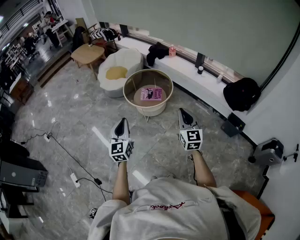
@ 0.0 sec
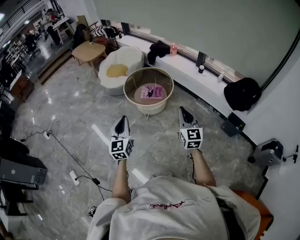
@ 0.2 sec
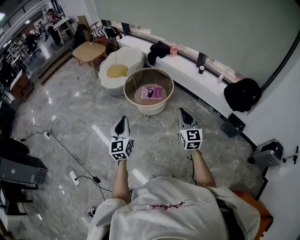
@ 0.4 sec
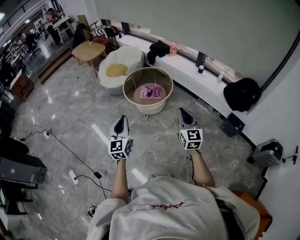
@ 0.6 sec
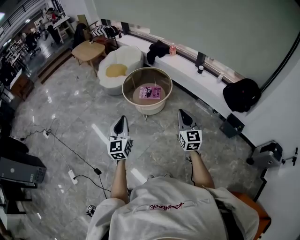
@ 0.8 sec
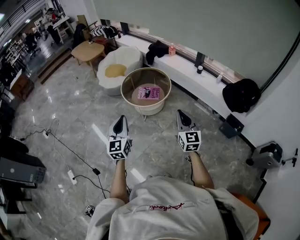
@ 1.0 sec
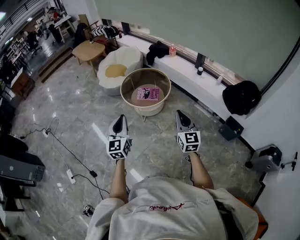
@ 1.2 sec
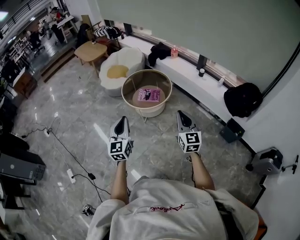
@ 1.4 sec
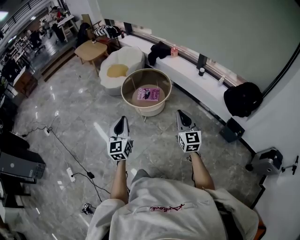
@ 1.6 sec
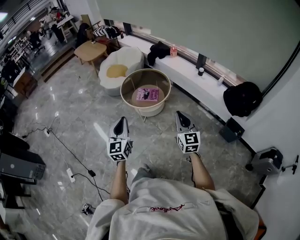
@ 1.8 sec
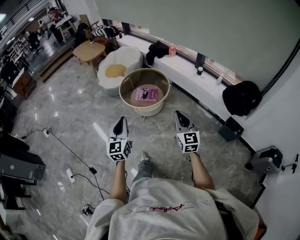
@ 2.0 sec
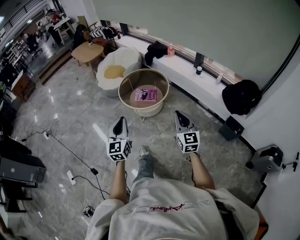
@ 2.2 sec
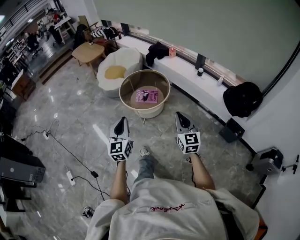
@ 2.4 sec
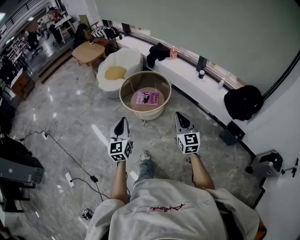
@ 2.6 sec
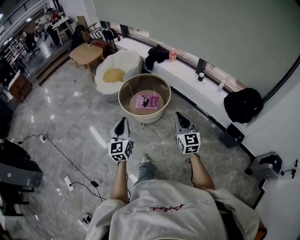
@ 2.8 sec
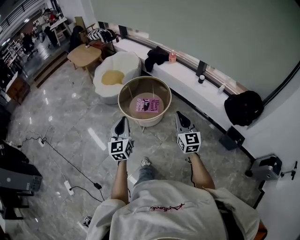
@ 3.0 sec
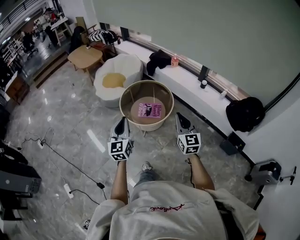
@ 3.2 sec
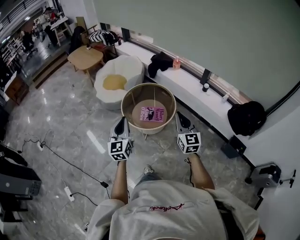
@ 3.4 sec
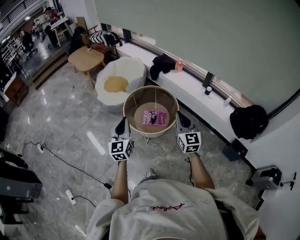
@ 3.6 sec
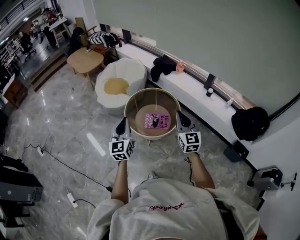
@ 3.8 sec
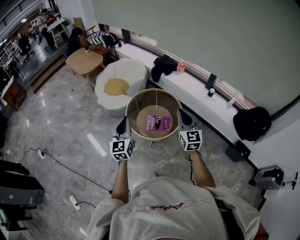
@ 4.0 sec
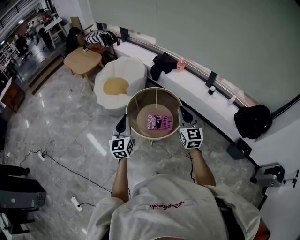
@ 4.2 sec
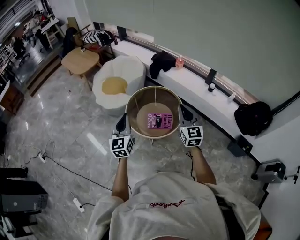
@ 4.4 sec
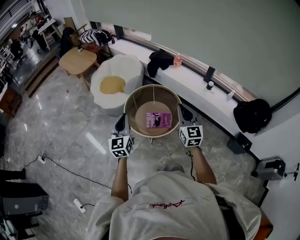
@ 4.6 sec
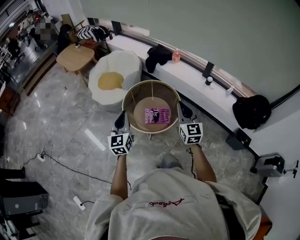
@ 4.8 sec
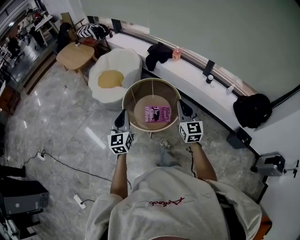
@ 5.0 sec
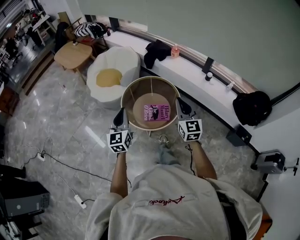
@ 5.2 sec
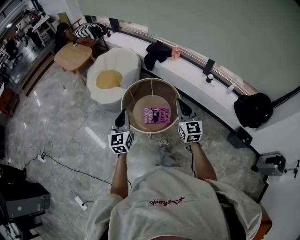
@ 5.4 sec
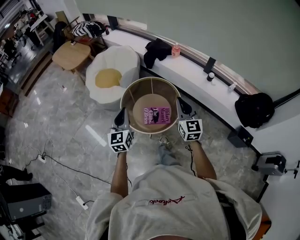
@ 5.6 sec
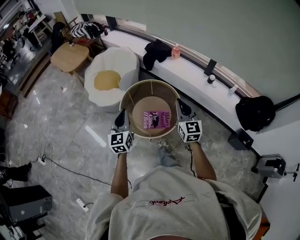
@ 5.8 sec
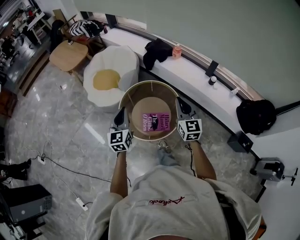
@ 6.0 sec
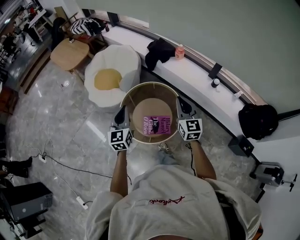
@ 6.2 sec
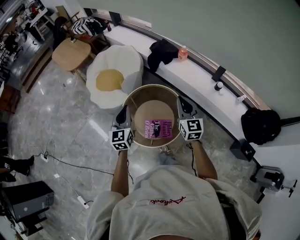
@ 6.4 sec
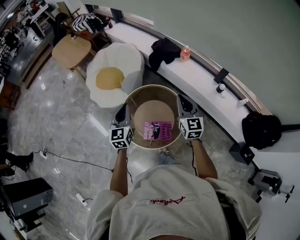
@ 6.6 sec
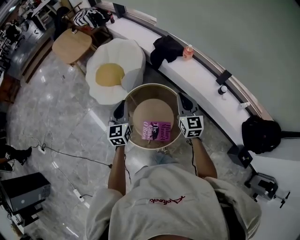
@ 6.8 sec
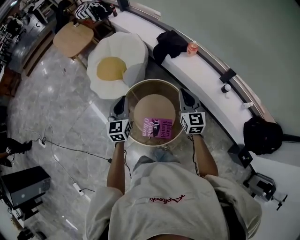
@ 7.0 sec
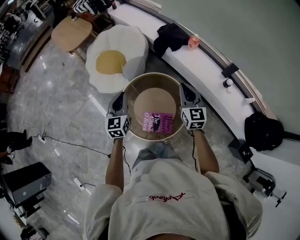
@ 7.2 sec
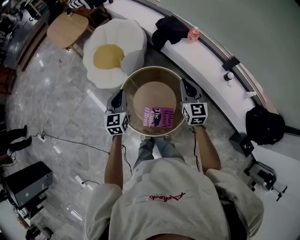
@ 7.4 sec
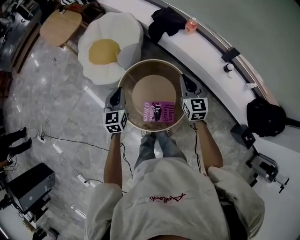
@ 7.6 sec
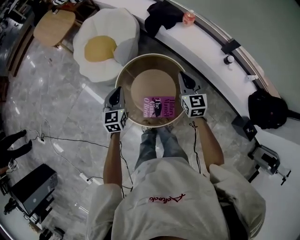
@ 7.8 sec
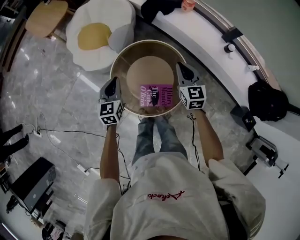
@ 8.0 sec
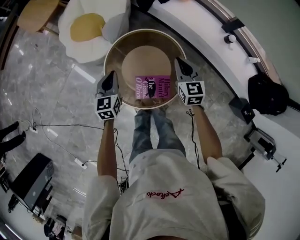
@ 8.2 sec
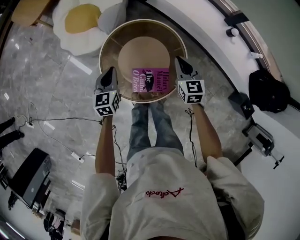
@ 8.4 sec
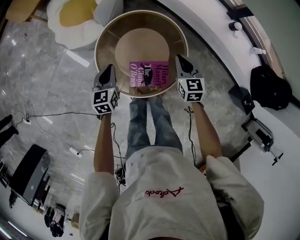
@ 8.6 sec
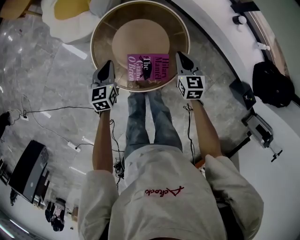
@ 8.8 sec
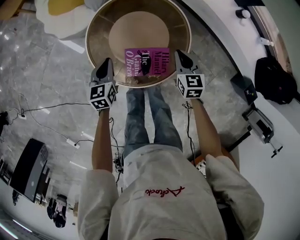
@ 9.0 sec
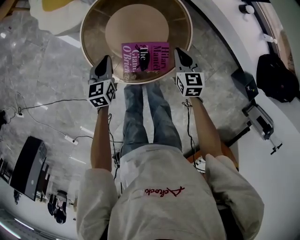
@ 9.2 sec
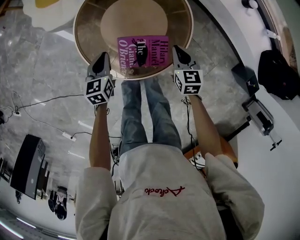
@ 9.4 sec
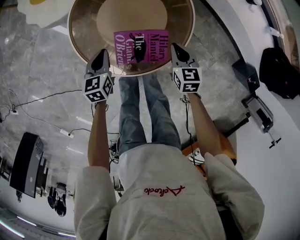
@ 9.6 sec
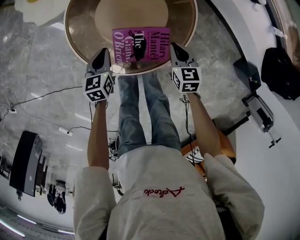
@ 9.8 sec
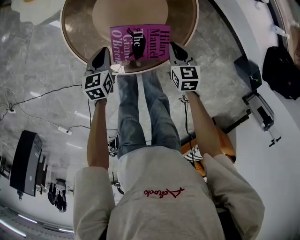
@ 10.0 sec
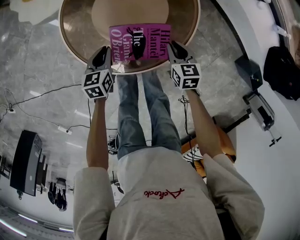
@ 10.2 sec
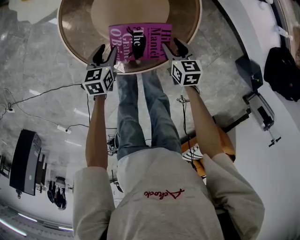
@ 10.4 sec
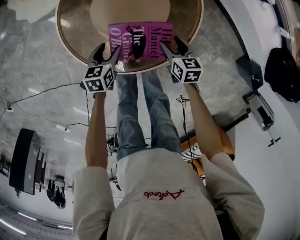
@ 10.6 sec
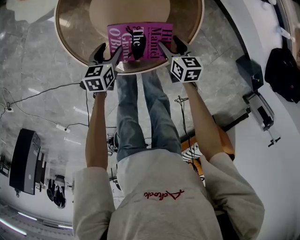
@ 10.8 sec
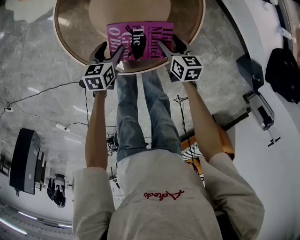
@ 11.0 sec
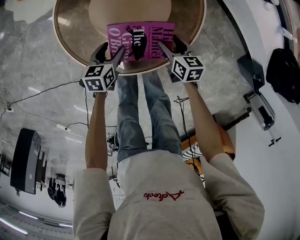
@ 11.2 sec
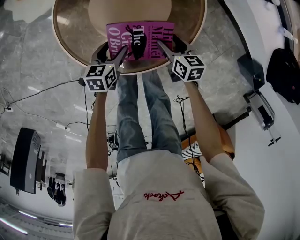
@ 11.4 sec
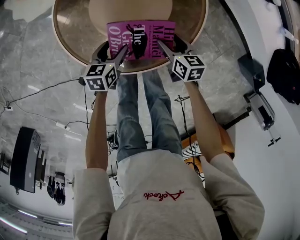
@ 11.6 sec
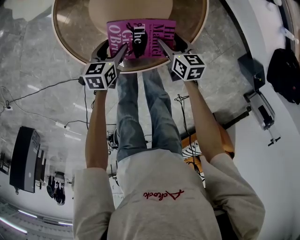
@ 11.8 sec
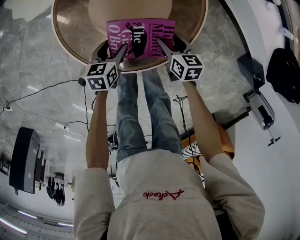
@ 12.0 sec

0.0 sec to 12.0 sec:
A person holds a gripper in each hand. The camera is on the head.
0.0 sec to 1.6 sec: The two grippers go roughly 5 cm to the right.
1.6 sec to 3.0 sec: Both grippers travel together forward, about 15 cm.
3.0 sec to 4.4 sec: Both grippers move forward and to the left, about 25 cm.
4.4 sec to 6.0 sec: The grippers both shift forward by about 15 cm.
6.0 sec to 7.6 sec: The grippers both shift forward and downward by roughly 20 cm.
7.6 sec to 9.0 sec: Both grippers move downward, roughly 25 cm. The right gripper swivels some 20 degrees, while the left gripper turns by about 20 degrees.
9.0 sec to 10.4 sec: The right gripper heads downward and backward, covering about 20 cm, and opens, while the left gripper is displaced downward by roughly 20 cm, and opens.
10.4 sec to 12.0 sec: The left gripper opens.

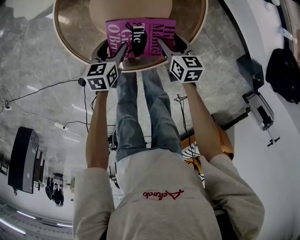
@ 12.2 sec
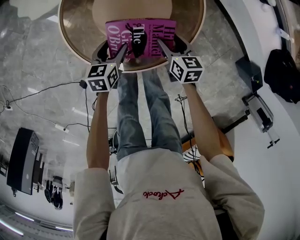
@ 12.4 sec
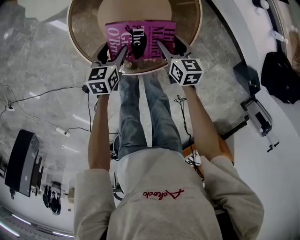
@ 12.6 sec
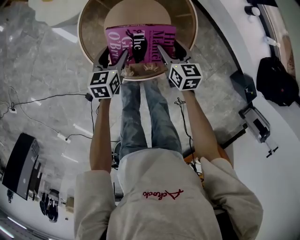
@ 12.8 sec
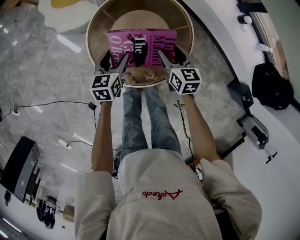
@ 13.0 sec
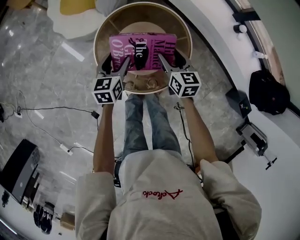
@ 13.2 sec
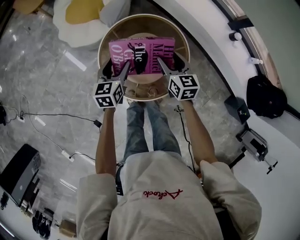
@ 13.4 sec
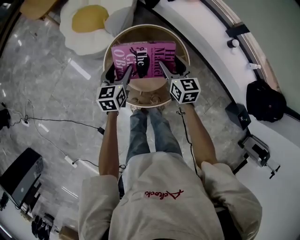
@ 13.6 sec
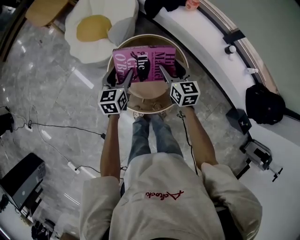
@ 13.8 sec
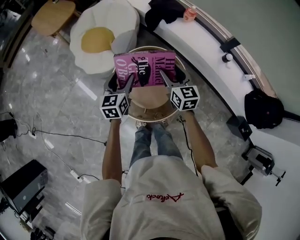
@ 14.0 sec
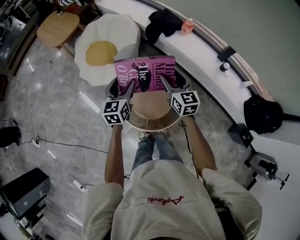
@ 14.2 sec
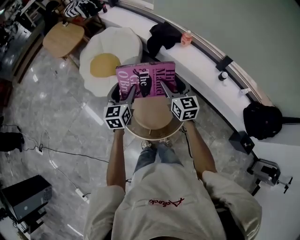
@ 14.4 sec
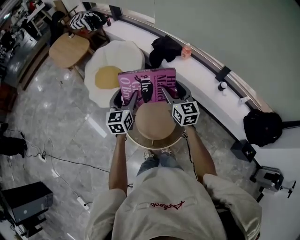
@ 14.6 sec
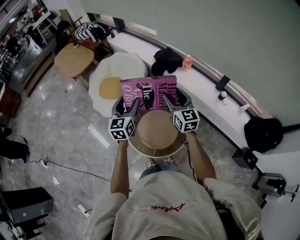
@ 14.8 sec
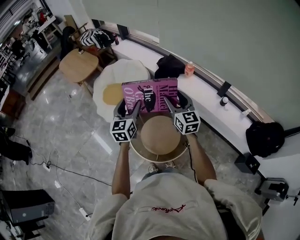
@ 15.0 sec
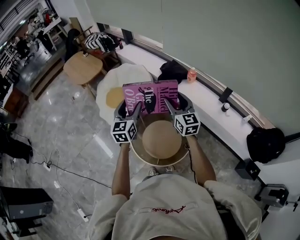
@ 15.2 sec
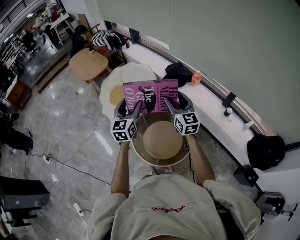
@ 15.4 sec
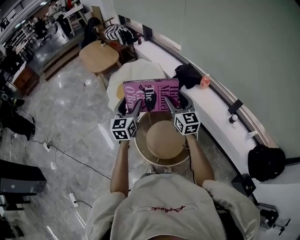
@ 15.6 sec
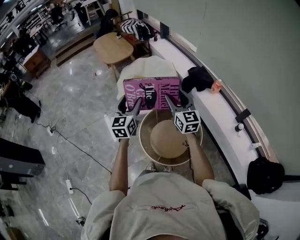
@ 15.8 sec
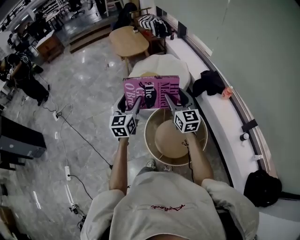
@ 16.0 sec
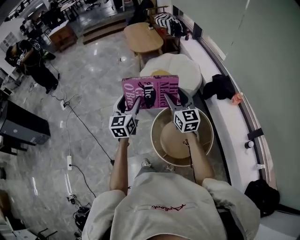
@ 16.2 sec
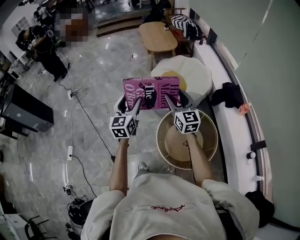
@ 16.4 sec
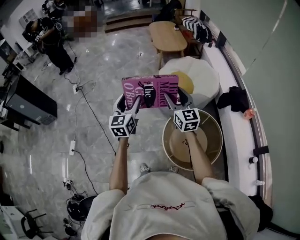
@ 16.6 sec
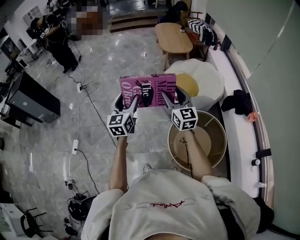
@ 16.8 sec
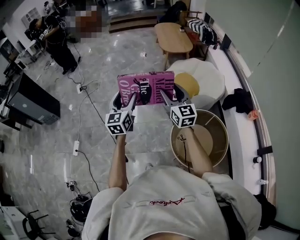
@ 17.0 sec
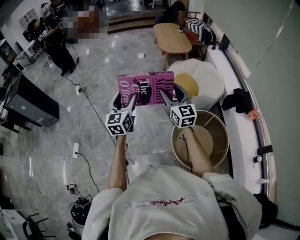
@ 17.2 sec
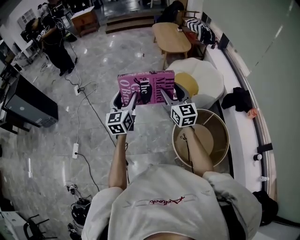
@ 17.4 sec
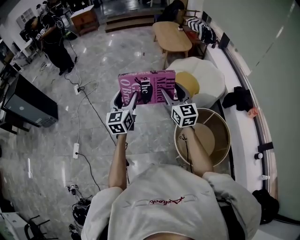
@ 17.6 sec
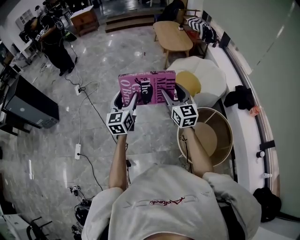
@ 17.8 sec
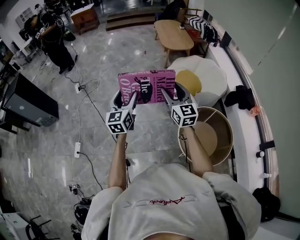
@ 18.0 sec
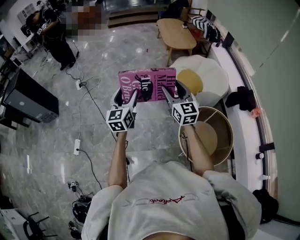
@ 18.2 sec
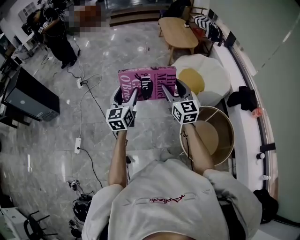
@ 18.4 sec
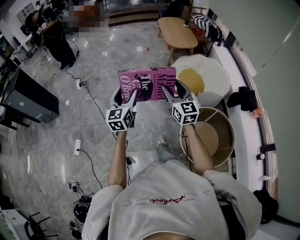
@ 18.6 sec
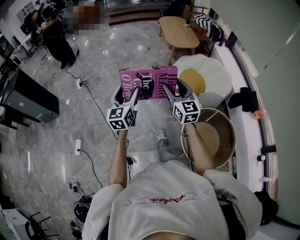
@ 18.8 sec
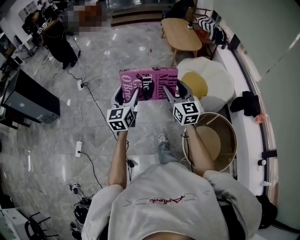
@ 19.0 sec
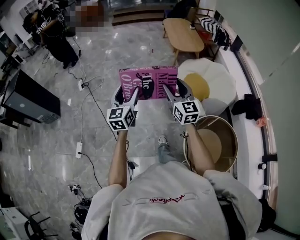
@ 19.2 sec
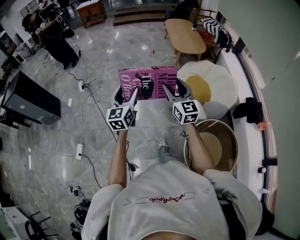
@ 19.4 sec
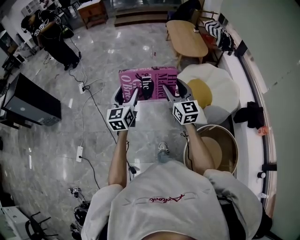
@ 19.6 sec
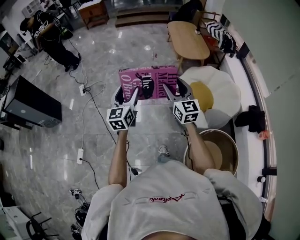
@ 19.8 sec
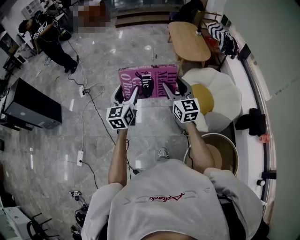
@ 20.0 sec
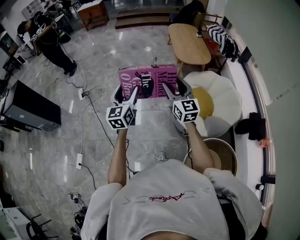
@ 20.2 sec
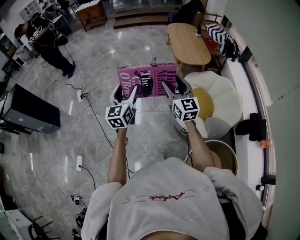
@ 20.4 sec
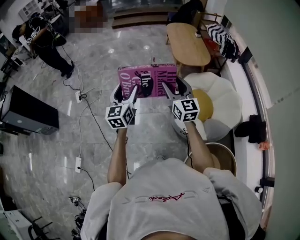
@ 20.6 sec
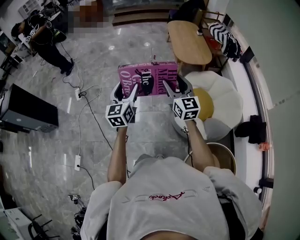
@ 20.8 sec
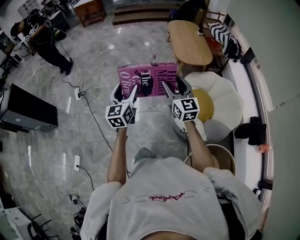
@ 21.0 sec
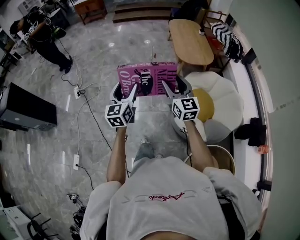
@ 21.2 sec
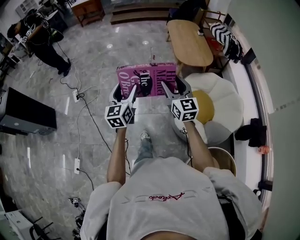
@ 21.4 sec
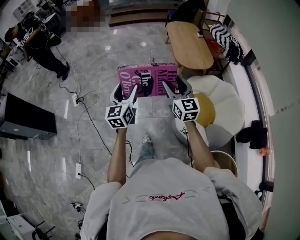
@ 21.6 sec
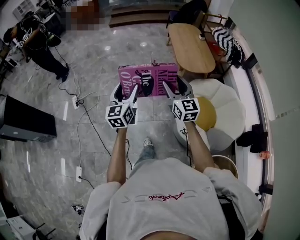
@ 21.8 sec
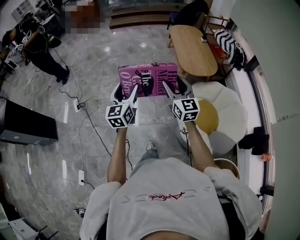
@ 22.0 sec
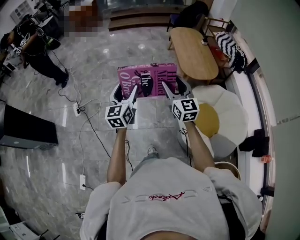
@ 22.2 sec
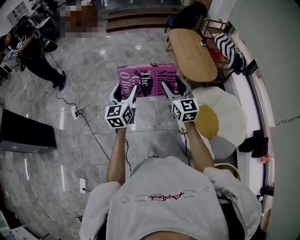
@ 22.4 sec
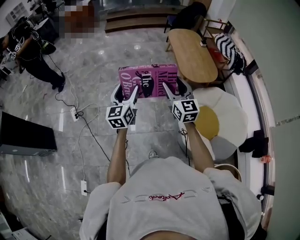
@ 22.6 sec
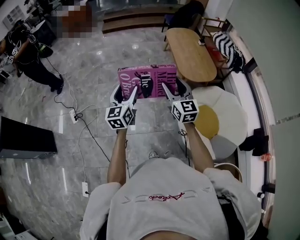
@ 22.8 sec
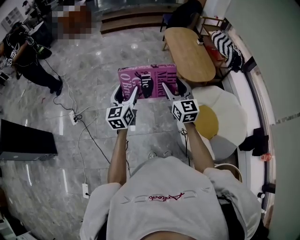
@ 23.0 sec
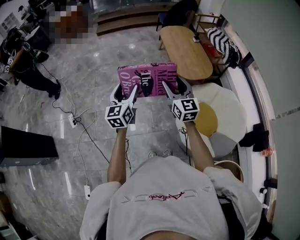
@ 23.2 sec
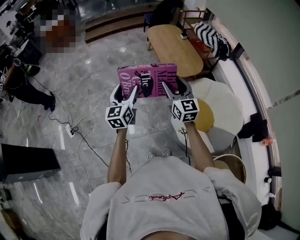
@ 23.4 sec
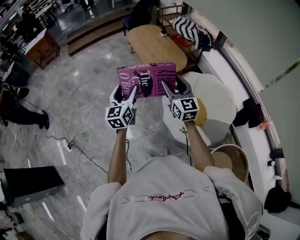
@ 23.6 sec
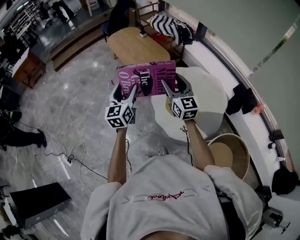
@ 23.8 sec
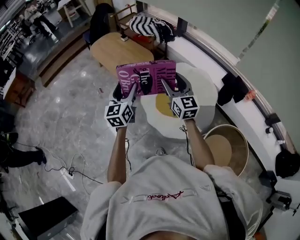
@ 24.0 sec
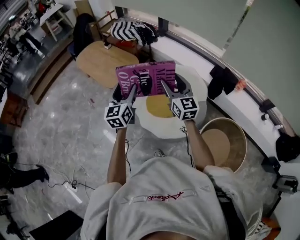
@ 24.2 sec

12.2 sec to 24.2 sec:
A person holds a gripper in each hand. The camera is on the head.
12.2 sec to 13.8 sec: Both grippers travel together upward, some 35 cm. The left gripper changes its angle by some 30 degrees. The right gripper rotates roughly 30 degrees.
13.8 sec to 15.2 sec: Both grippers travel together upward, approximately 25 cm. The left gripper turns by some 20 degrees. The right gripper turns by roughly 20 degrees.
15.2 sec to 16.6 sec: The right gripper changes place by approximately 35 cm, and swivels some 40 degrees, while the left gripper shifts by roughly 35 cm, and swivels approximately 40 degrees.
16.6 sec to 18.2 sec: Both grippers travel together to the left, some 20 cm.
18.2 sec to 19.8 sec: Both grippers move forward, about 25 cm.
19.8 sec to 21.2 sec: The two grippers go roughly 20 cm forward.
21.2 sec to 22.6 sec: Both grippers move forward, roughly 25 cm.
22.6 sec to 24.2 sec: Both grippers are carried some 50 cm. The left gripper turns by some 40 degrees. Meanwhile the right gripper rotates some 40 degrees.
